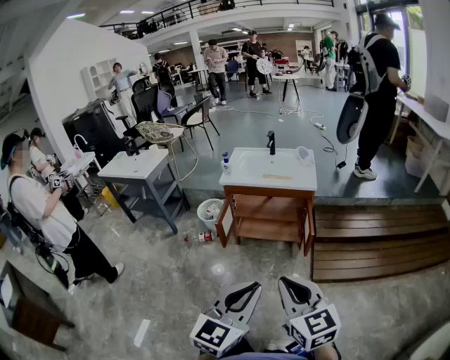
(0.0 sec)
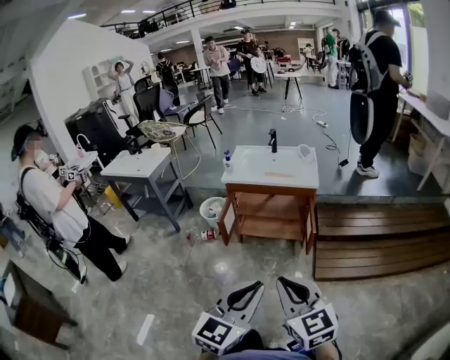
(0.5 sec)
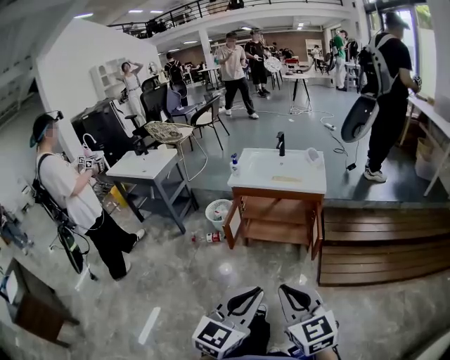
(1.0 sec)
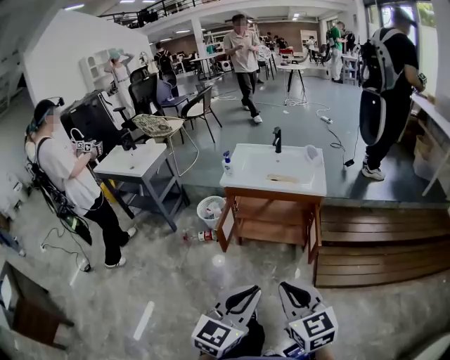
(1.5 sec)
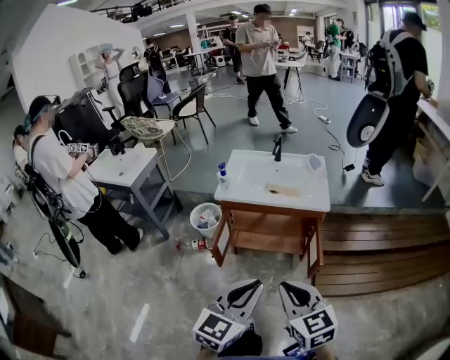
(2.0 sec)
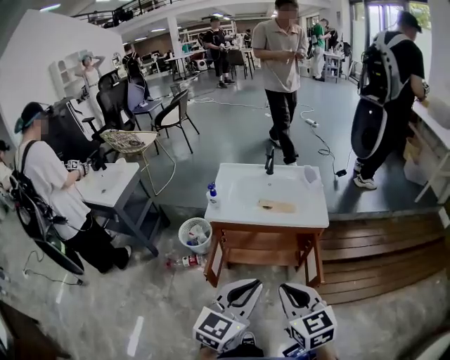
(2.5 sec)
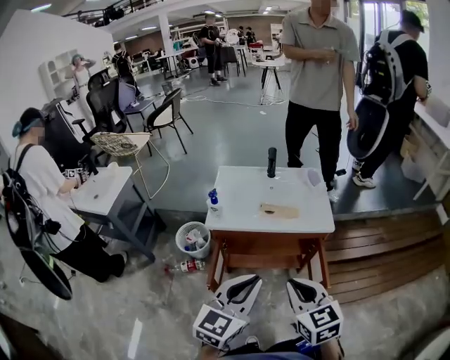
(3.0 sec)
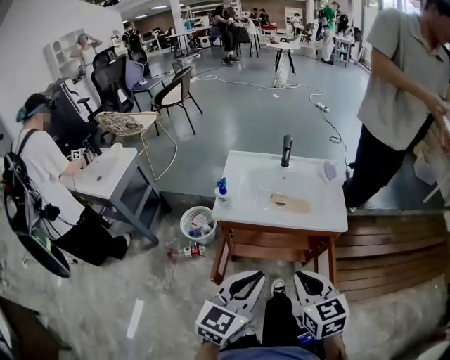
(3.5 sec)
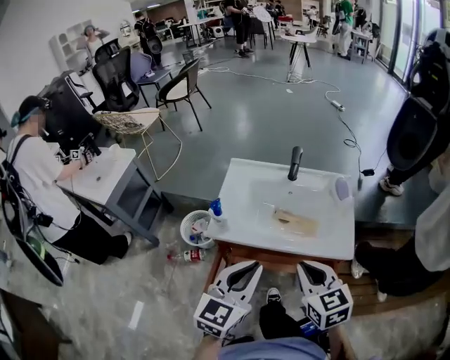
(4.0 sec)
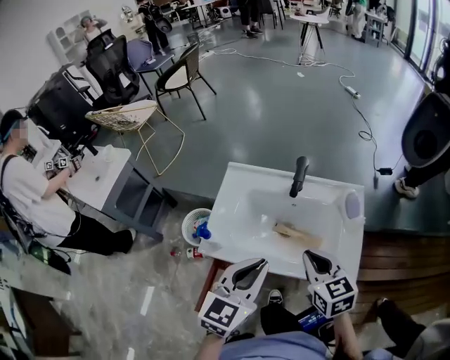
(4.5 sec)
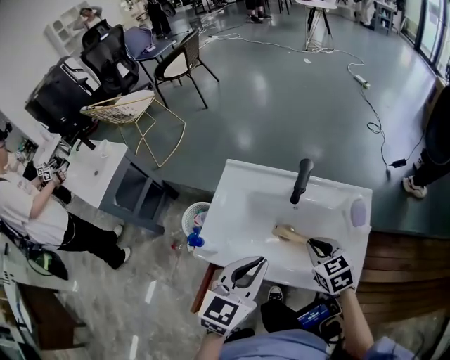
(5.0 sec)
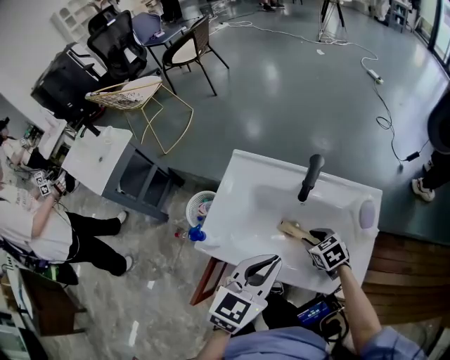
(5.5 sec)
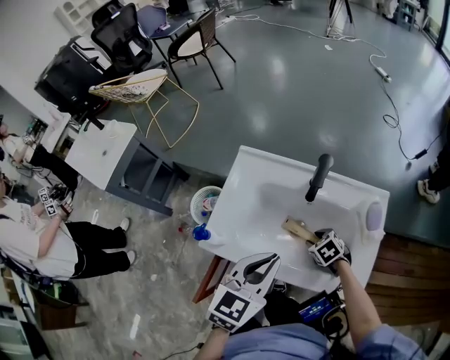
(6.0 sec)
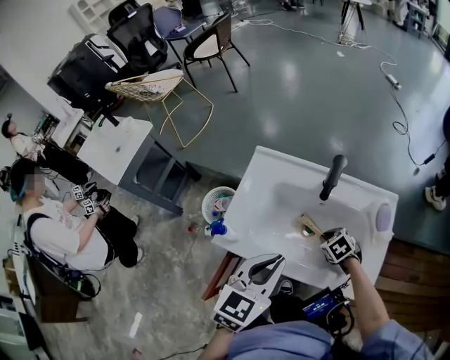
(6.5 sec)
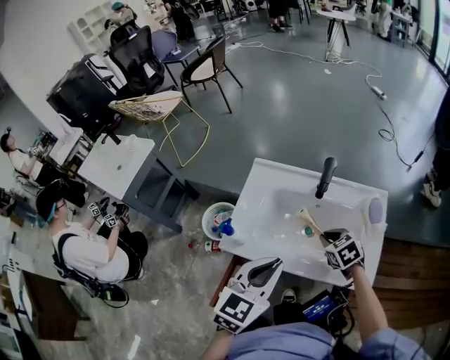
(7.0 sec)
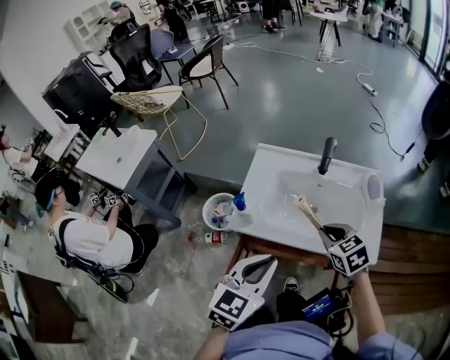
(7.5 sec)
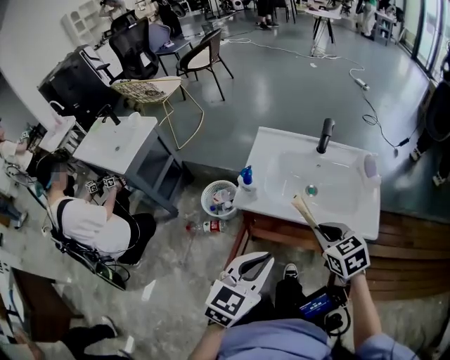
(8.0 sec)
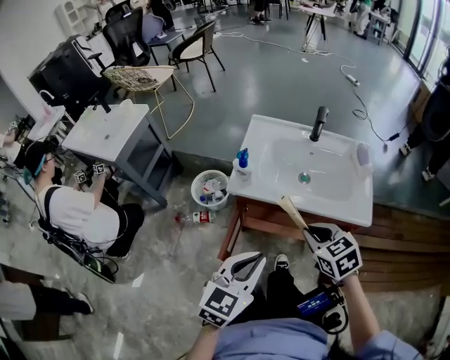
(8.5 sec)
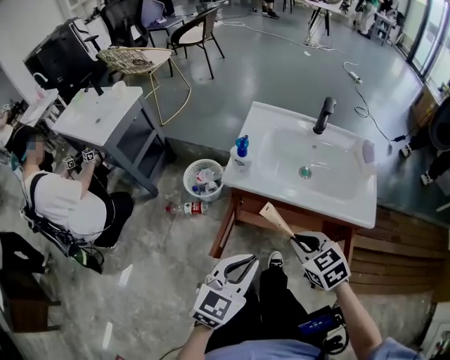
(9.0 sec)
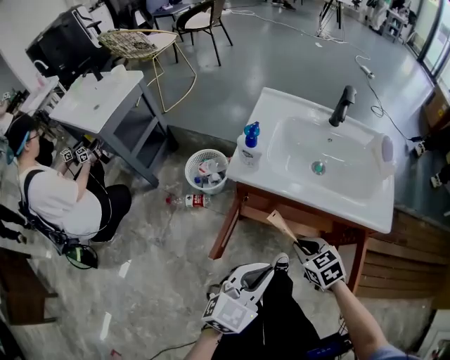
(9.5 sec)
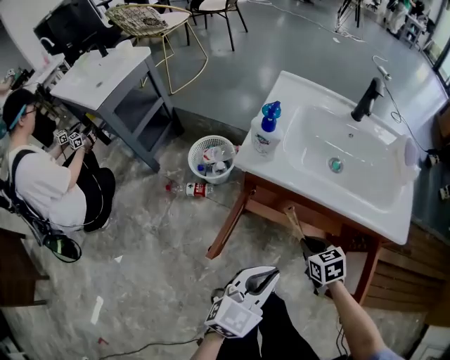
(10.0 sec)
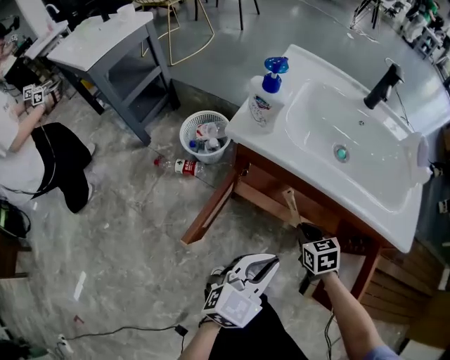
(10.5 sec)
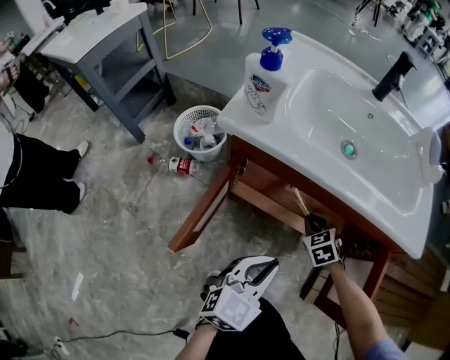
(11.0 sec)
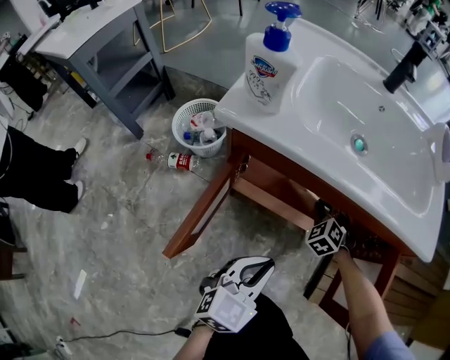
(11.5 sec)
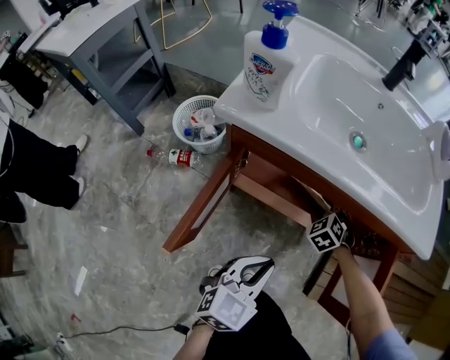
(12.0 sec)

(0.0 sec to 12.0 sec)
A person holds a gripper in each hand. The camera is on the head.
0.0 sec - 2.0 sec: Both grippers move forward, approximately 25 cm.
2.0 sec - 4.0 sec: Both grippers travel together forward, about 35 cm.
4.0 sec - 6.0 sec: The left gripper heads forward and to the right, covering roughly 20 cm. Meanwhile the right gripper goes roughly 40 cm downward and forward, tilts its fingers some 40 degrees downward, and opens.
6.0 sec - 8.0 sec: The right gripper shifts some 35 cm upward, backward and to the left, swivels approximately 30 degrees, and closes up, while the left gripper is displaced backward and to the left by approximately 25 cm.
8.0 sec - 10.0 sec: Both grippers move downward, about 25 cm.
10.0 sec - 12.0 sec: The left gripper travels downward by approximately 15 cm, while the right gripper travels downward and forward by roughly 20 cm, changes its angle by some 40 degrees, and opens up.

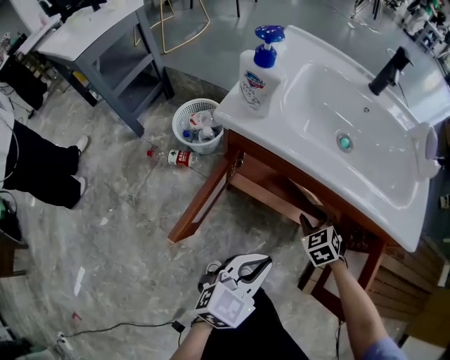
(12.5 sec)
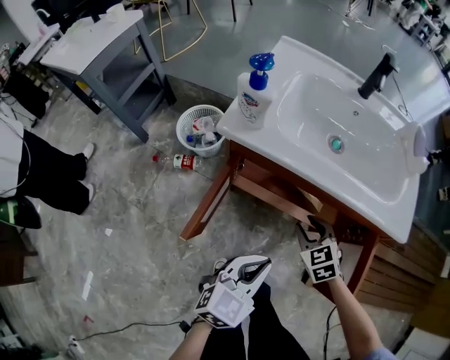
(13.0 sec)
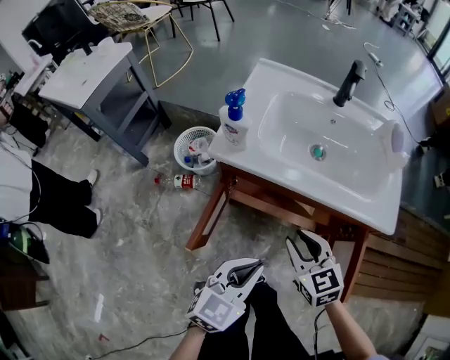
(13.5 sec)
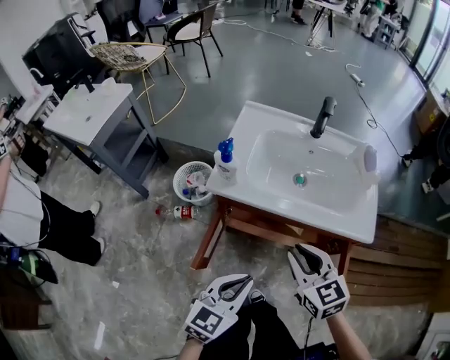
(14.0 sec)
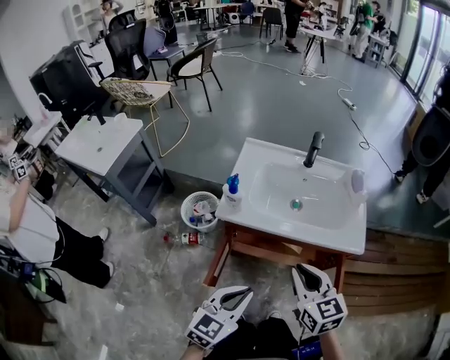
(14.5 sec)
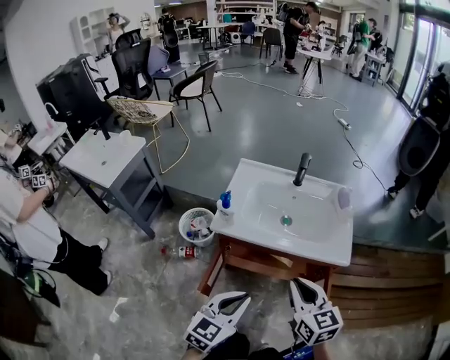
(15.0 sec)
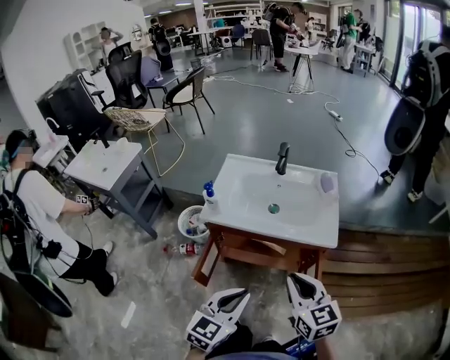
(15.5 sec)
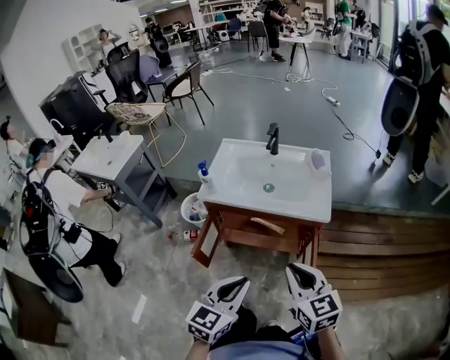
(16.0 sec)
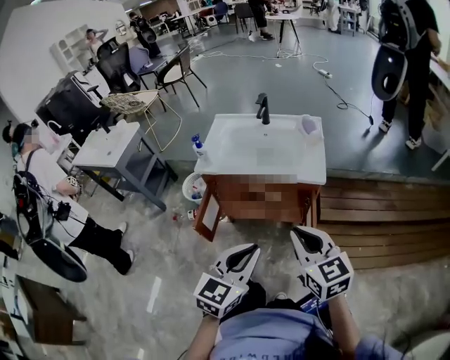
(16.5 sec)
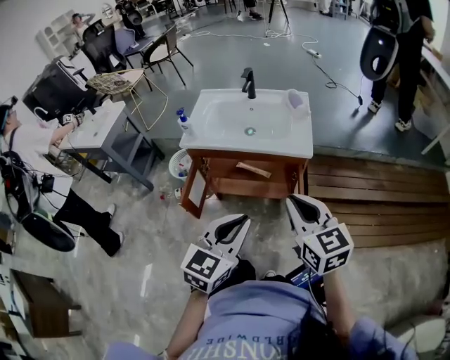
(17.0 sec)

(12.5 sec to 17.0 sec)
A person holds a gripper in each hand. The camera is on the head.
12.5 sec - 14.5 sec: The right gripper heads upward, covering approximately 40 cm, angles its fingers upward, by approximately 30 degrees, and closes up; the left gripper travels upward by some 25 cm.
14.5 sec - 17.0 sec: Both grippers travel together to the right, backward and upward, about 25 cm.

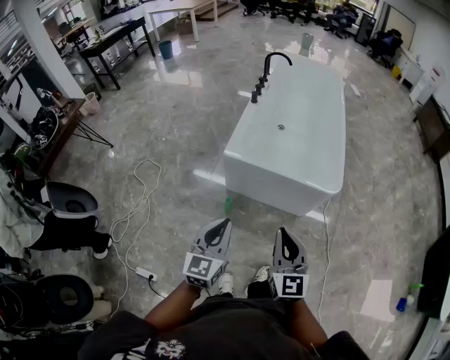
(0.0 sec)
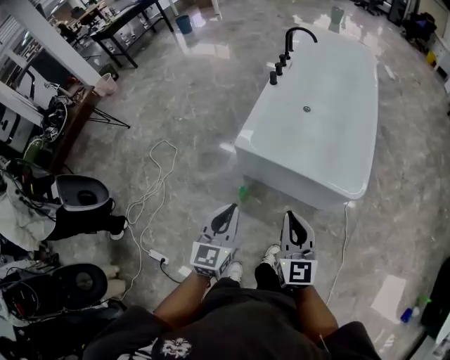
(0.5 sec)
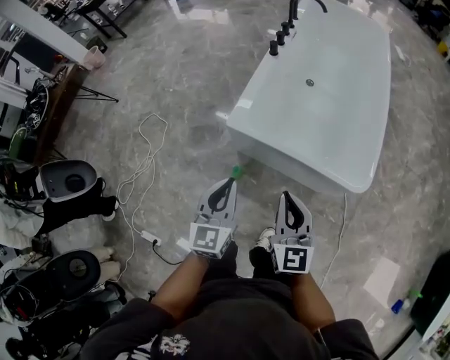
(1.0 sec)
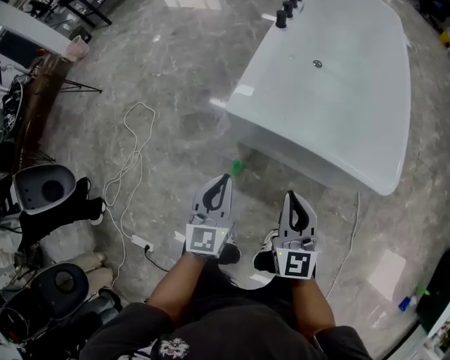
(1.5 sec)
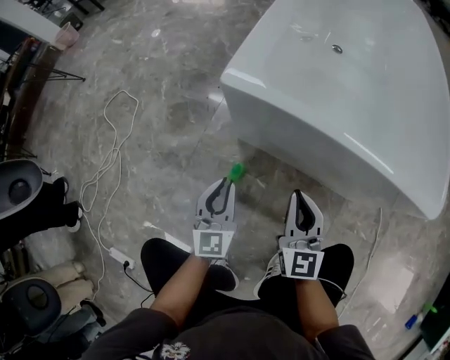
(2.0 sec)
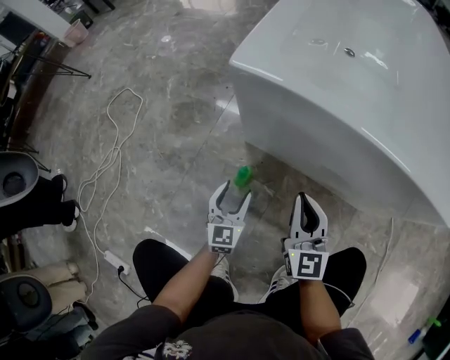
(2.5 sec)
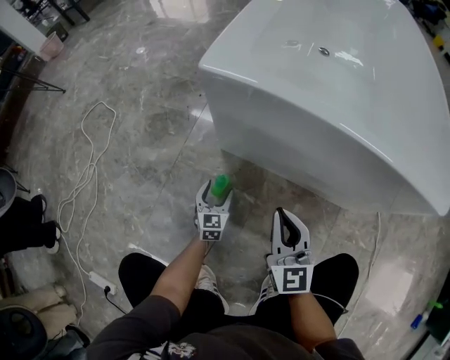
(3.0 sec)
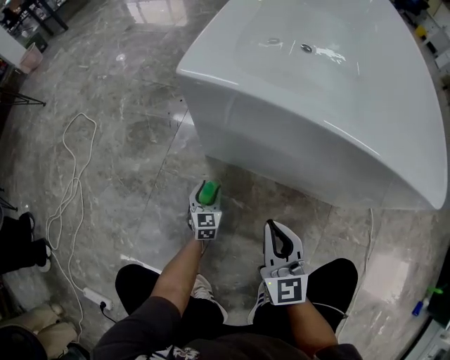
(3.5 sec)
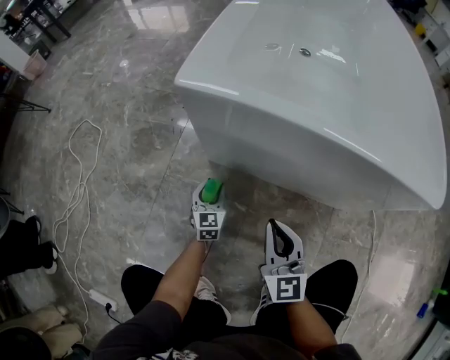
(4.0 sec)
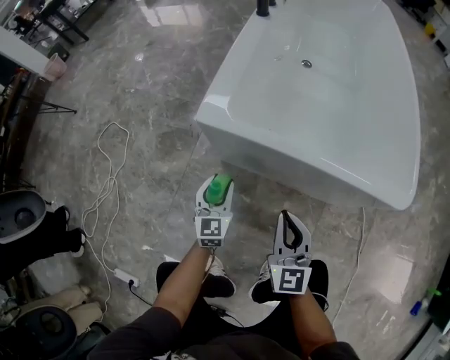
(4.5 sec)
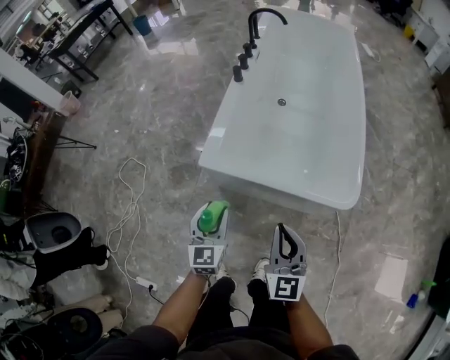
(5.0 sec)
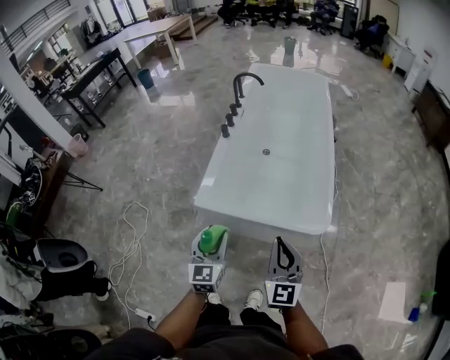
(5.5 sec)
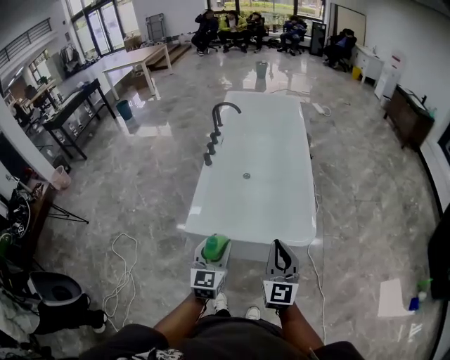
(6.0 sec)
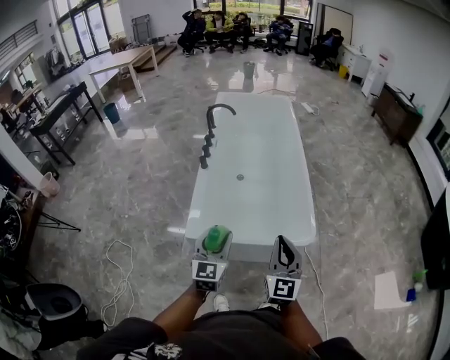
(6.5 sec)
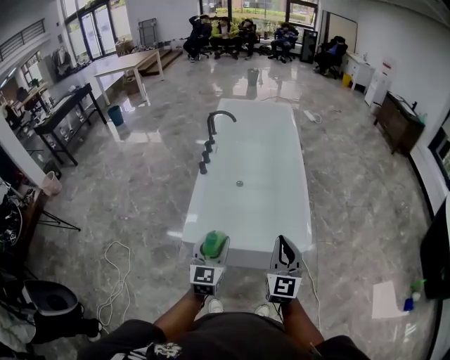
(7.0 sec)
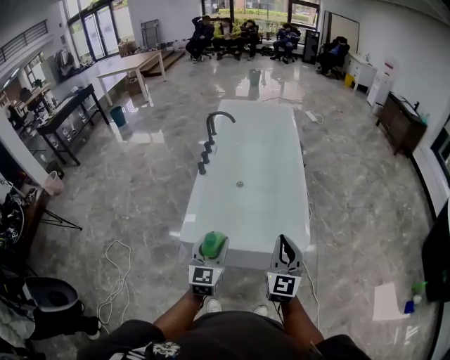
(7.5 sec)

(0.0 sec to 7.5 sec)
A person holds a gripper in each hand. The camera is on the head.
0.0 sec - 2.0 sec: Both grippers travel together downward and forward, approximately 70 cm.
2.0 sec - 4.0 sec: The right gripper is displaced downward by approximately 10 cm, while the left gripper heads downward, covering approximately 30 cm, and opens its fingers.
4.0 sec - 5.5 sec: Both grippers move upward, some 70 cm.
5.5 sec - 7.5 sec: The right gripper moves upward and forward, roughly 10 cm. Meanwhile the left gripper heads forward and upward, covering some 10 cm.

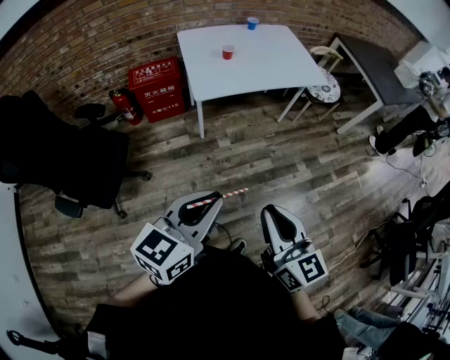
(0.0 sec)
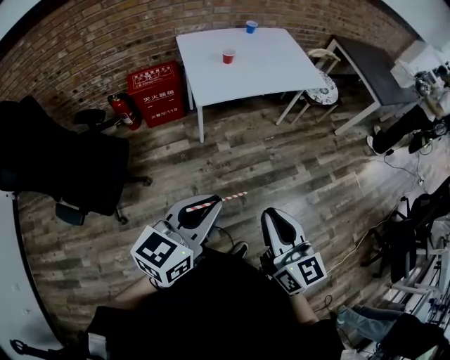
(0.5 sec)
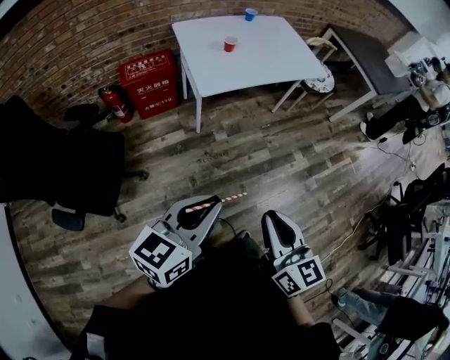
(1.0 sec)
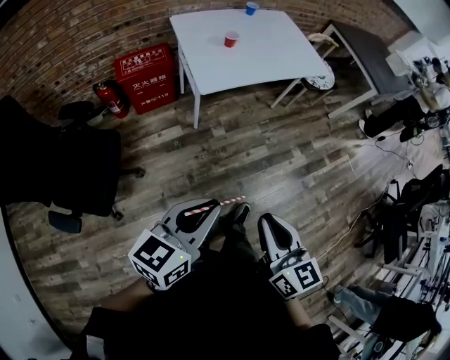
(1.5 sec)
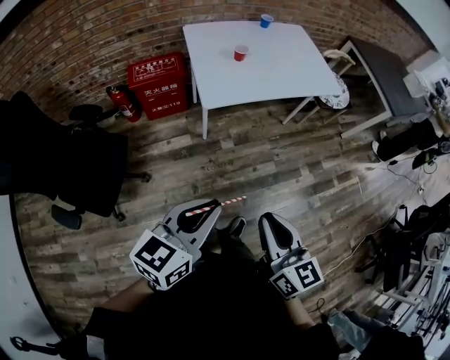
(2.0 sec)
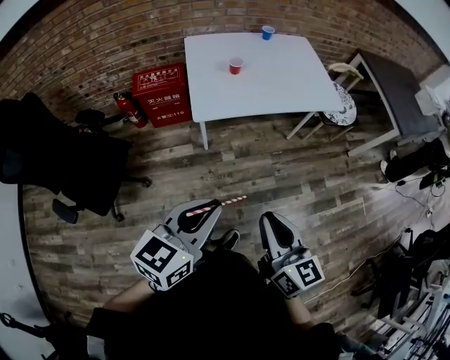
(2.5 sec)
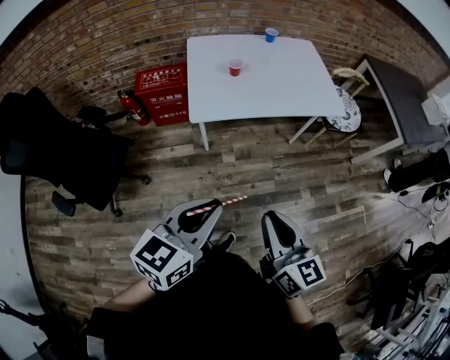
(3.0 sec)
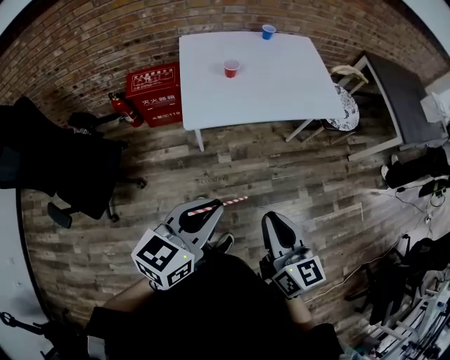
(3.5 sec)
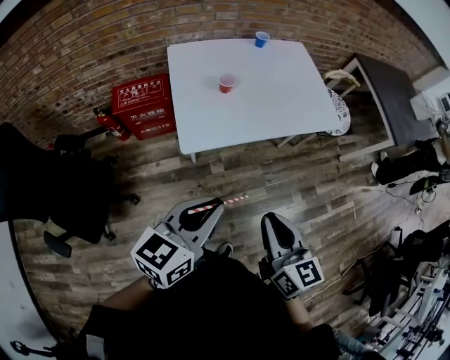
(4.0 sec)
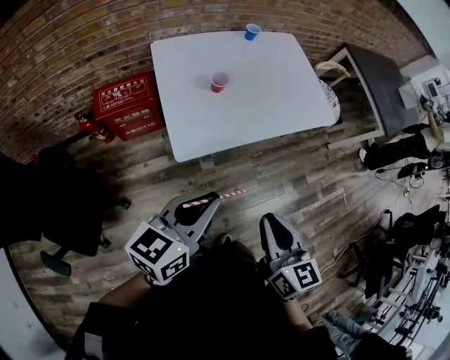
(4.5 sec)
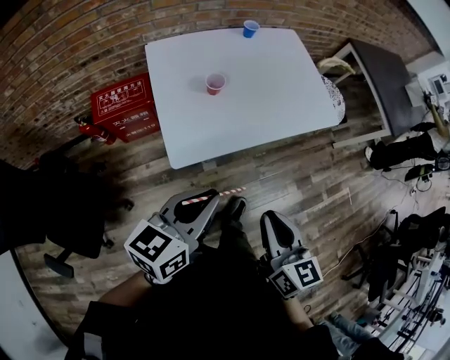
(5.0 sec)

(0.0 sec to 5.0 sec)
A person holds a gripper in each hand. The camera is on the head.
0.0 sec - 2.5 sec: The grippers both shift forward by some 15 cm.
2.5 sec - 5.0 sec: The grippers both shift forward by roughly 30 cm.
